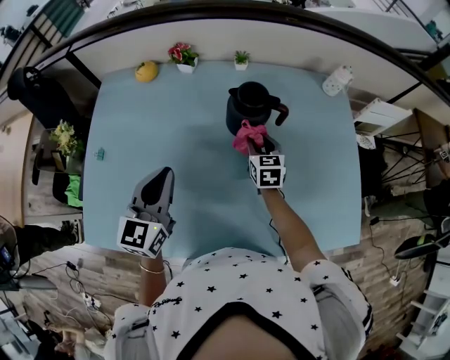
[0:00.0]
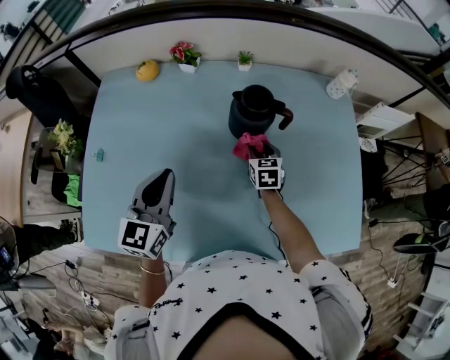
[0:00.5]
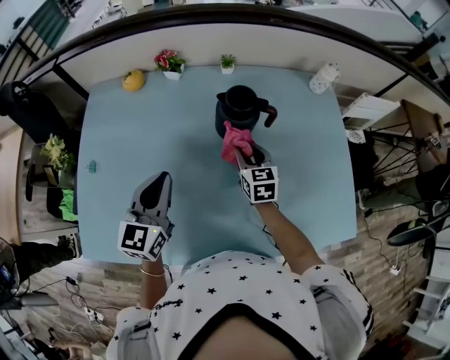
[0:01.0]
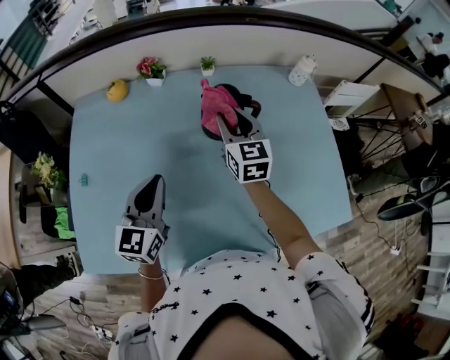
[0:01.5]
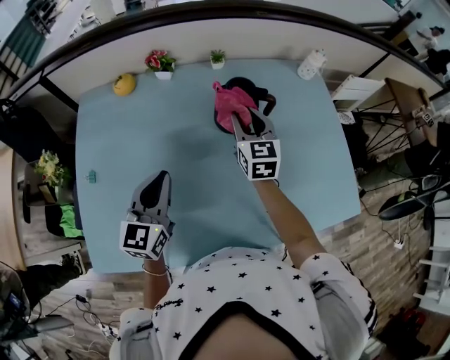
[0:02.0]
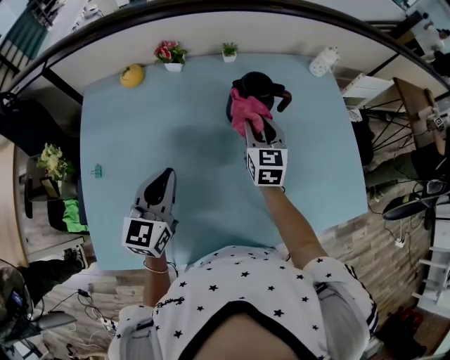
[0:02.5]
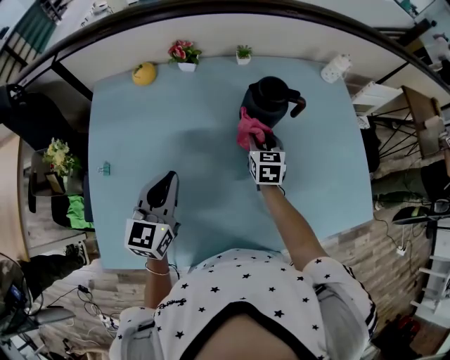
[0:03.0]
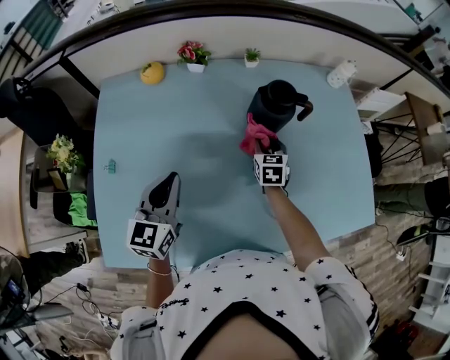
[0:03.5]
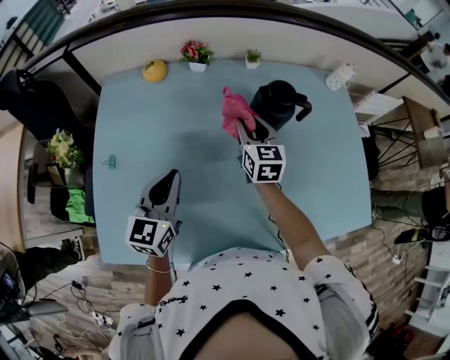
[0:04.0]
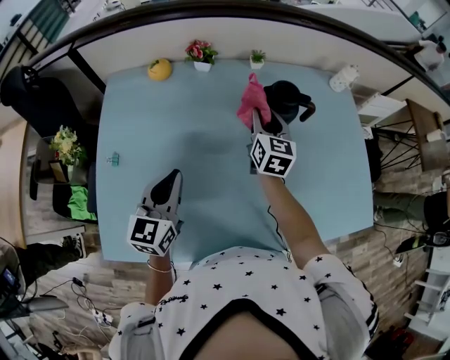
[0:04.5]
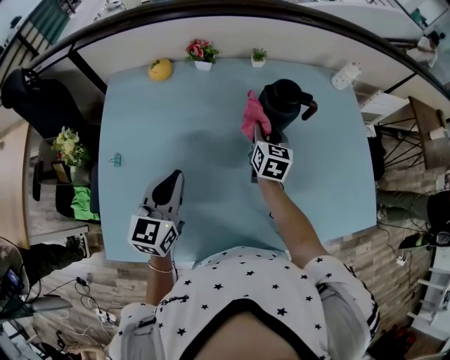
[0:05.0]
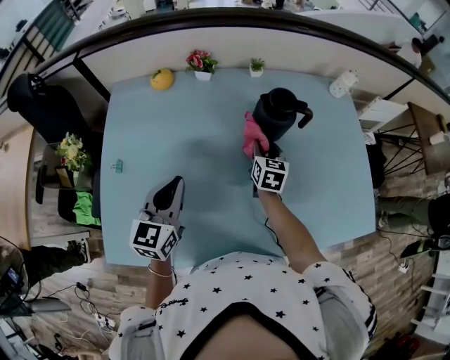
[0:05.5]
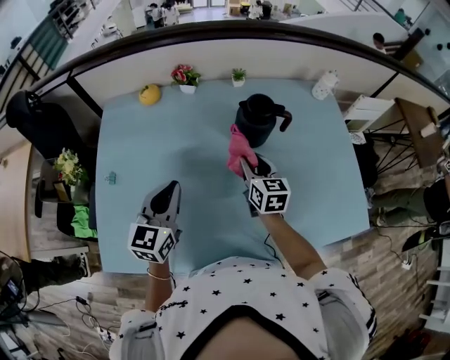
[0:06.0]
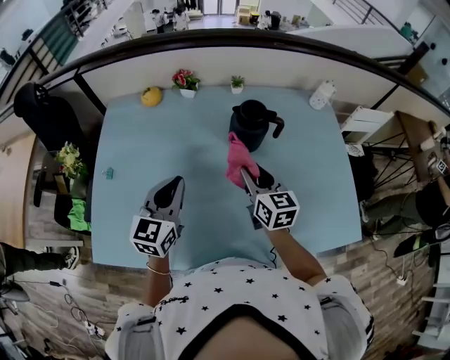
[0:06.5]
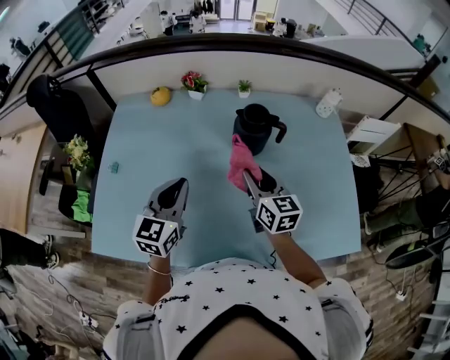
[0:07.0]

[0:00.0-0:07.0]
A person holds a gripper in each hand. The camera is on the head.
0:00.0 to 0:02.0: The right gripper shifts approximately 15 cm upward.
0:02.0 to 0:03.5: The left gripper goes some 5 cm to the left; the right gripper heads downward, covering roughly 15 cm, and swivels about 20 degrees.
0:03.5 to 0:05.0: The right gripper is displaced upward by approximately 5 cm.
0:05.0 to 0:07.0: The left gripper shifts roughly 10 cm to the right, while the right gripper heads backward and upward, covering about 15 cm, and changes its angle by approximately 30 degrees.

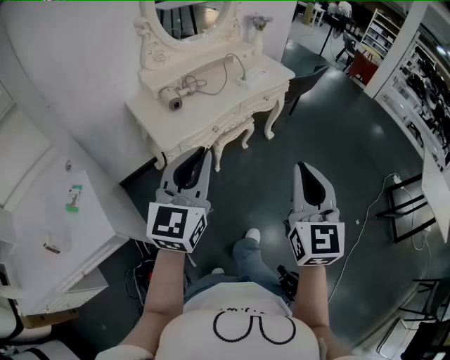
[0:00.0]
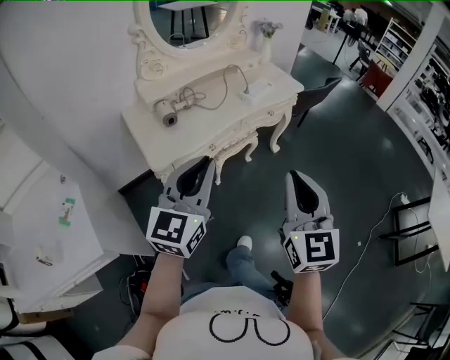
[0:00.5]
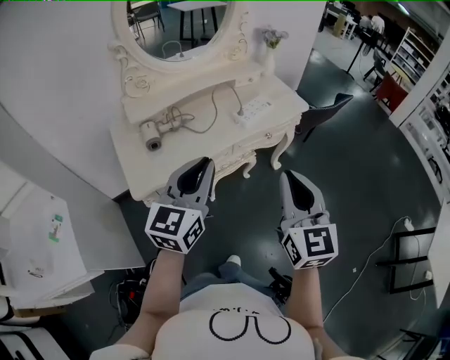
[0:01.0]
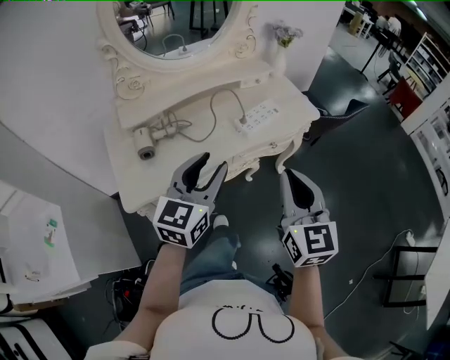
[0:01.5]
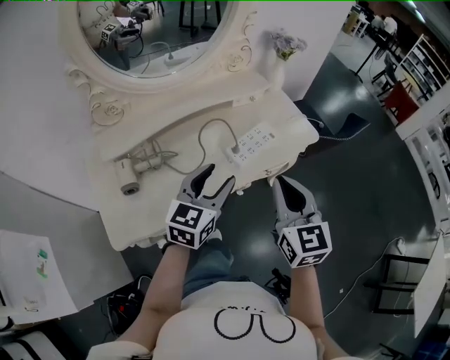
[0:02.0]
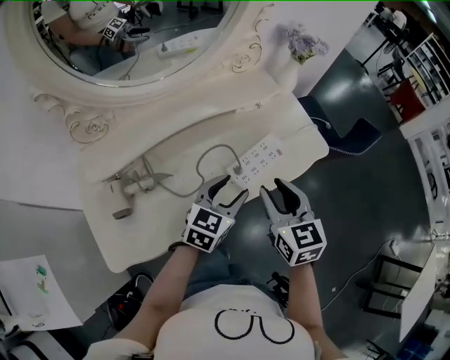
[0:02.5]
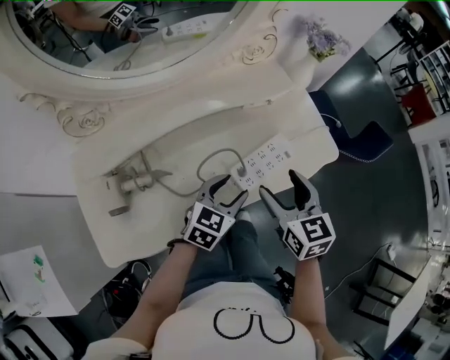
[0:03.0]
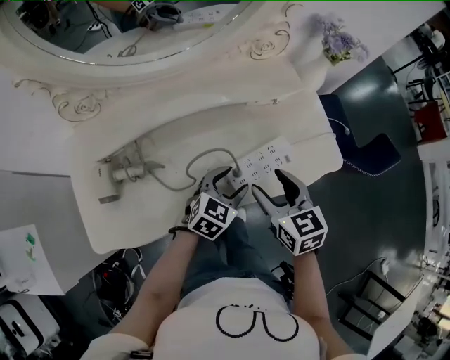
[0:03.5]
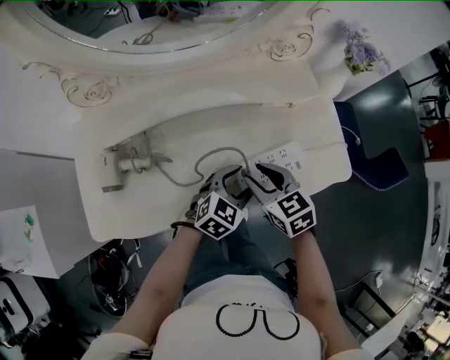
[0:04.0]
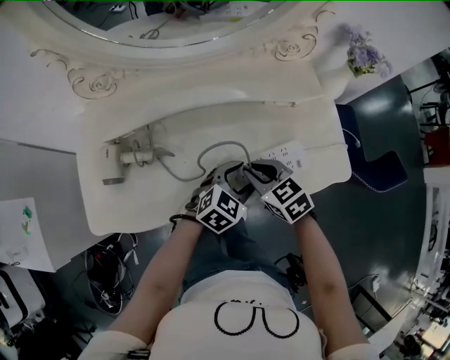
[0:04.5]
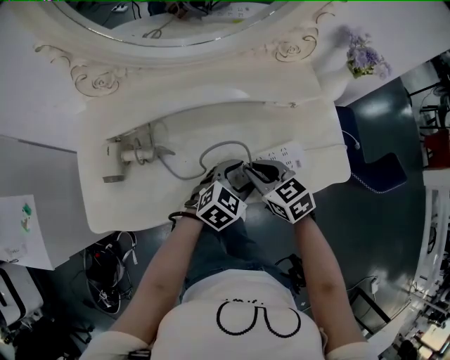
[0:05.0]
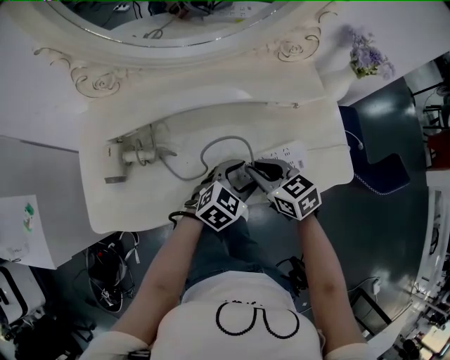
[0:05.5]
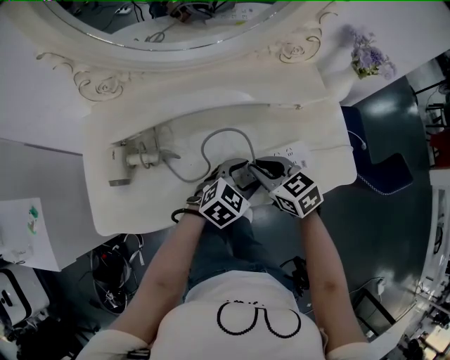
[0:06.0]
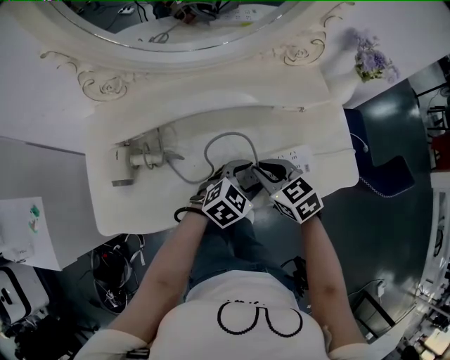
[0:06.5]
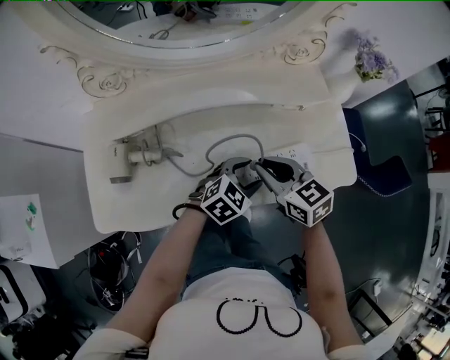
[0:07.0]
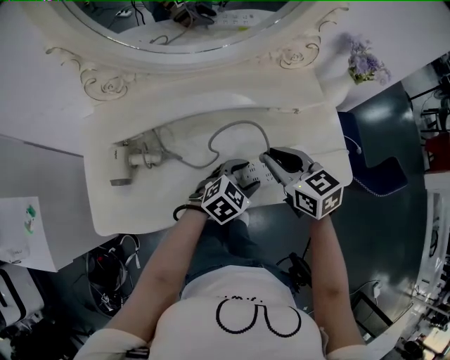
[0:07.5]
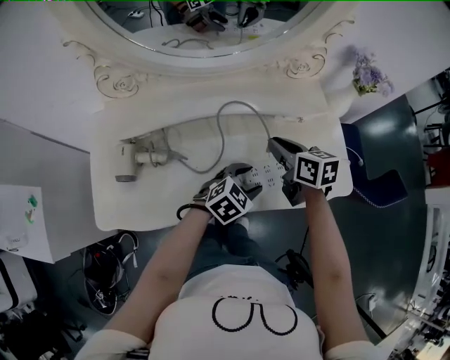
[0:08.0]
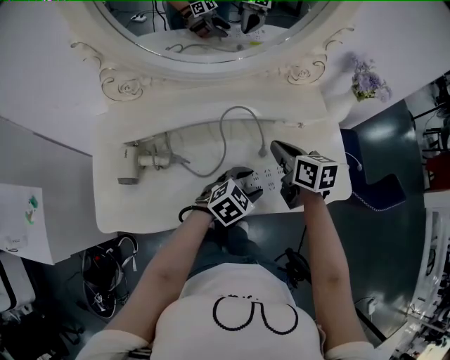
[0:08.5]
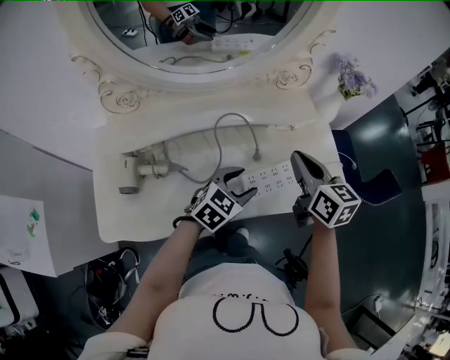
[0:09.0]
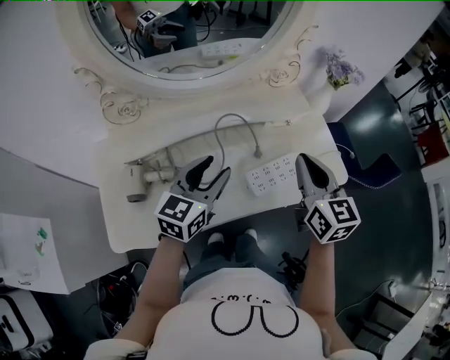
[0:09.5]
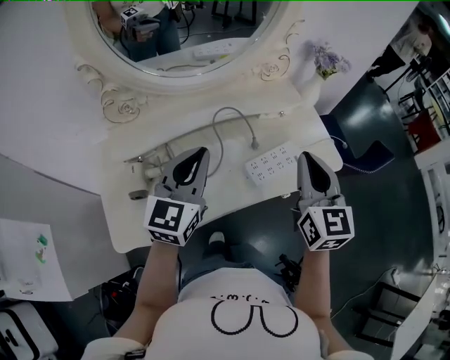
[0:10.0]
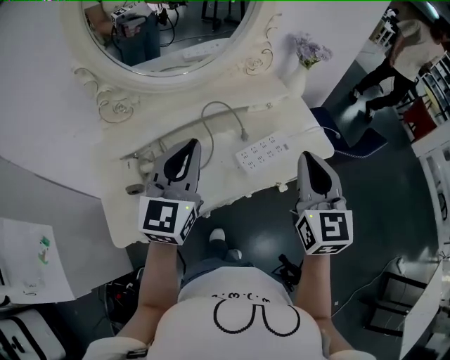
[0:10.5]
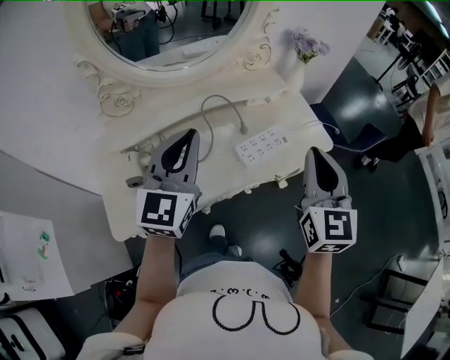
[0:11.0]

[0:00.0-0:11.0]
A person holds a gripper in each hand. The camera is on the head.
0:00.0 to 0:02.0: The two grippers travel together, forward, roughly 60 cm. The right gripper changes its angle by roughly 20 degrees, while the left gripper rotates roughly 20 degrees, and opens.
0:02.0 to 0:03.5: The left gripper moves downward and forward, some 25 cm, and swivels about 20 degrees. The right gripper goes about 25 cm forward and downward, rotates roughly 30 degrees, and opens up.
0:03.5 to 0:05.5: The right gripper goes some 10 cm downward and to the left, swivels approximately 30 degrees, and closes up.
0:05.5 to 0:07.5: The right gripper is displaced upward by approximately 10 cm.
0:07.5 to 0:09.0: The right gripper moves upward and to the right, approximately 10 cm, and changes its angle by roughly 30 degrees. The left gripper travels upward by approximately 5 cm.
0:09.0 to 0:11.0: The left gripper shifts approximately 30 cm upward and to the left, points its fingers about 30 degrees further upward, and closes; the right gripper travels backward and upward by some 25 cm, and swivels roughly 40 degrees.

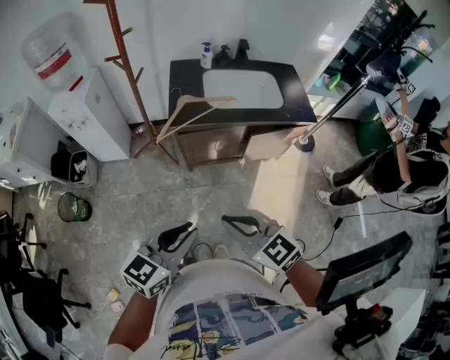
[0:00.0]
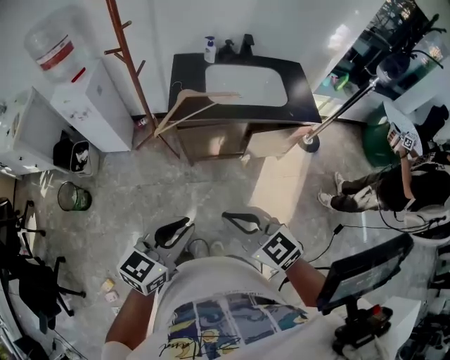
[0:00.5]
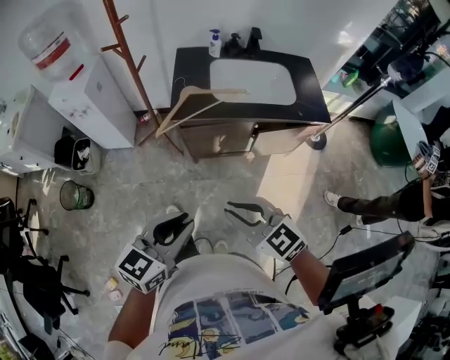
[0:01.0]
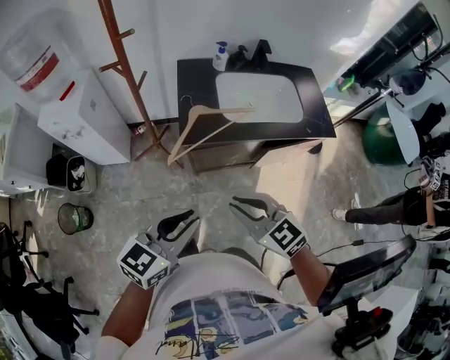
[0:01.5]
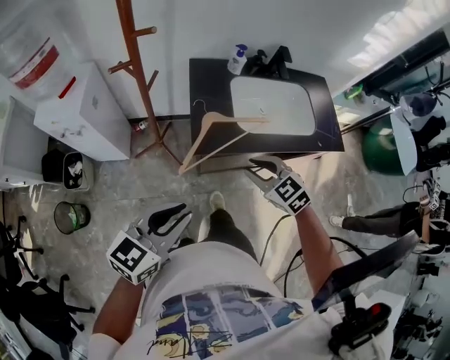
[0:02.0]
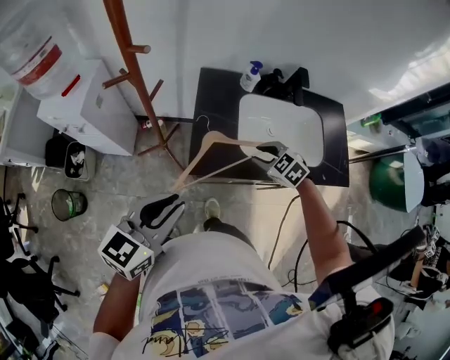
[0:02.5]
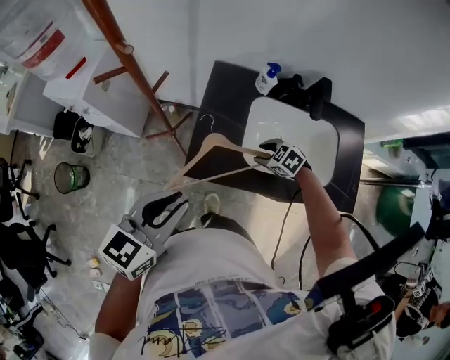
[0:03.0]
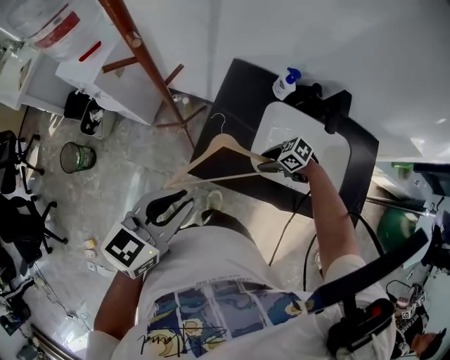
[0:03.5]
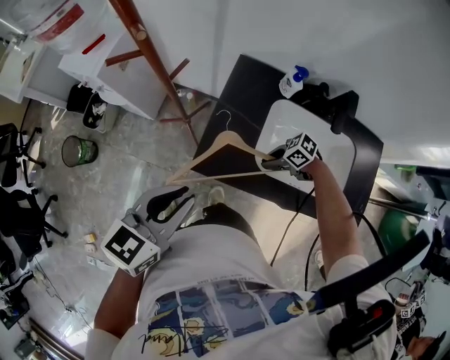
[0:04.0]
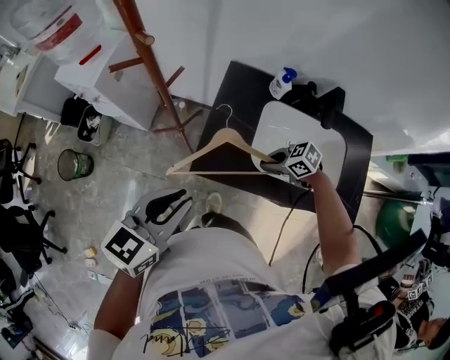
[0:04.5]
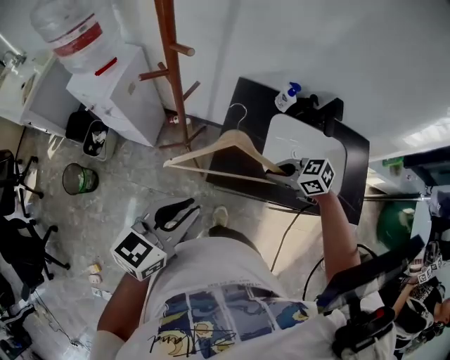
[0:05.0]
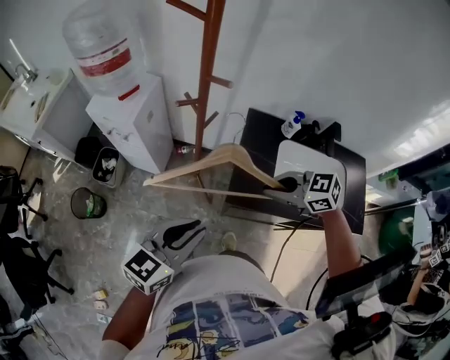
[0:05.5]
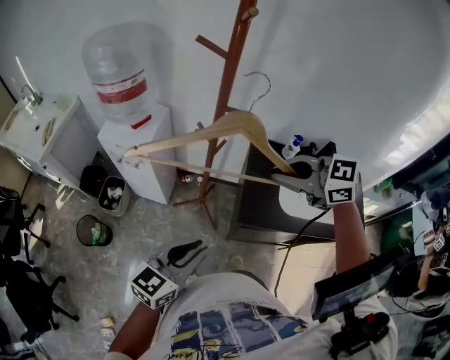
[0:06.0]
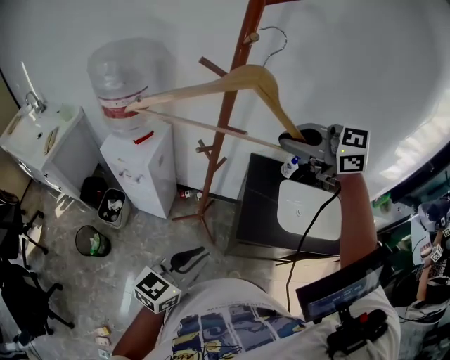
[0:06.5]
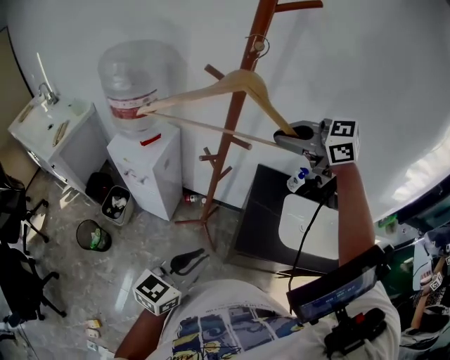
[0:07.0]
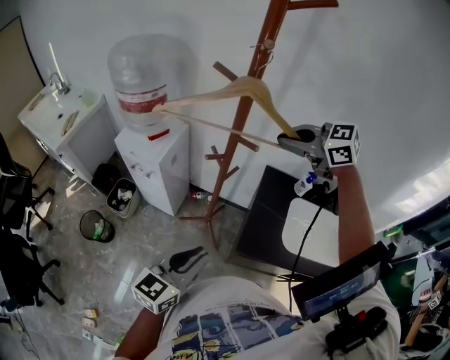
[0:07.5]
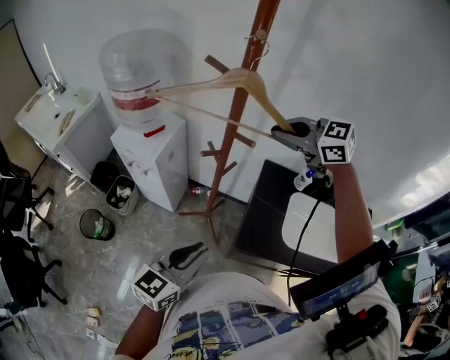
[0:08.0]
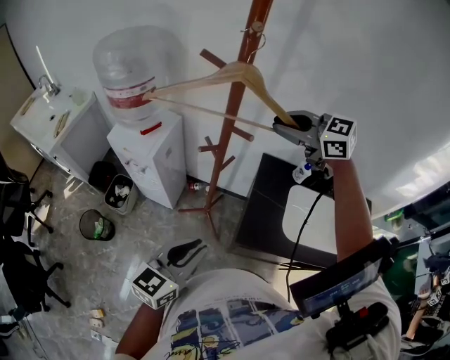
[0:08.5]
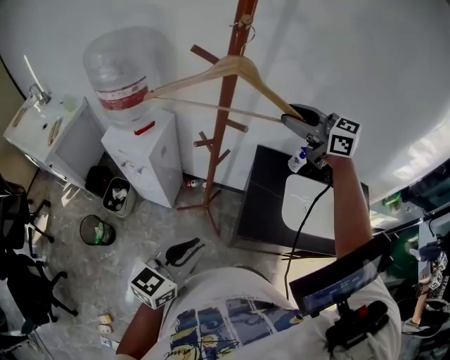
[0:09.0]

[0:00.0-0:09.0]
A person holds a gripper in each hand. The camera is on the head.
0:00.0 to 0:02.0: The left gripper travels forward and to the left by approximately 25 cm; the right gripper shifts about 35 cm forward, and opens up.
0:02.0 to 0:04.5: The left gripper changes place by about 15 cm, and changes its angle by approximately 20 degrees. The right gripper shifts by about 25 cm, swivels about 50 degrees, and opens and closes again.
0:04.5 to 0:07.0: The left gripper shifts by approximately 15 cm. The right gripper shifts roughly 50 cm upward, and rotates about 40 degrees.
0:07.0 to 0:09.0: The right gripper goes about 5 cm to the right, turns by about 20 degrees, and opens up.
